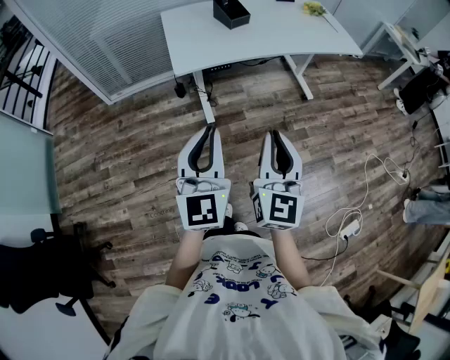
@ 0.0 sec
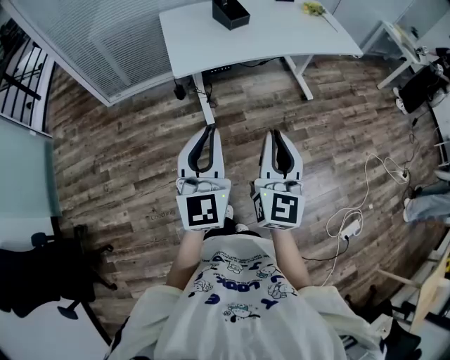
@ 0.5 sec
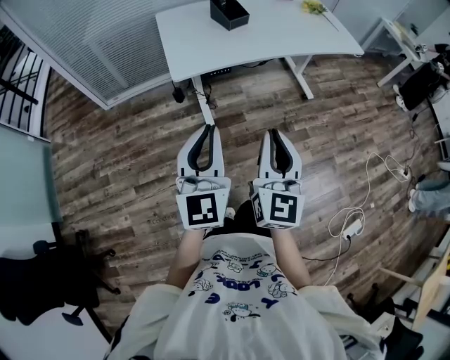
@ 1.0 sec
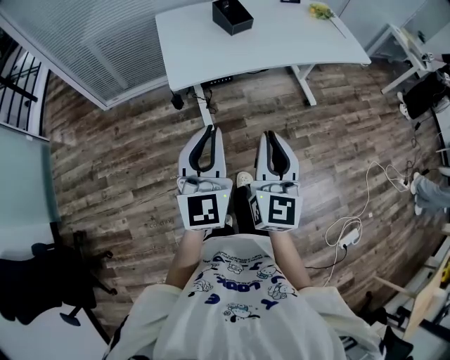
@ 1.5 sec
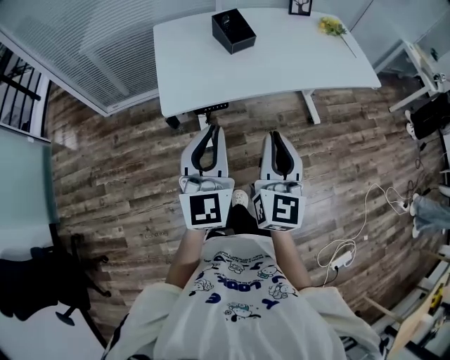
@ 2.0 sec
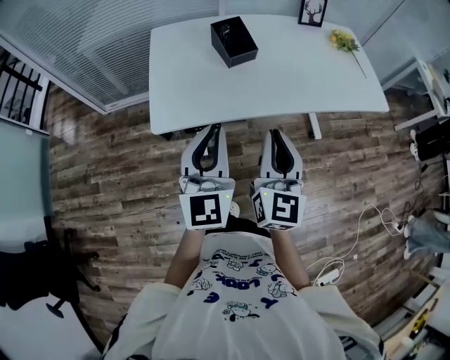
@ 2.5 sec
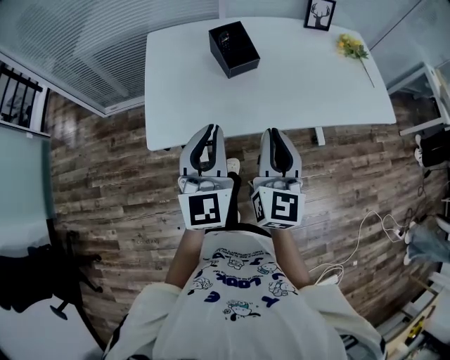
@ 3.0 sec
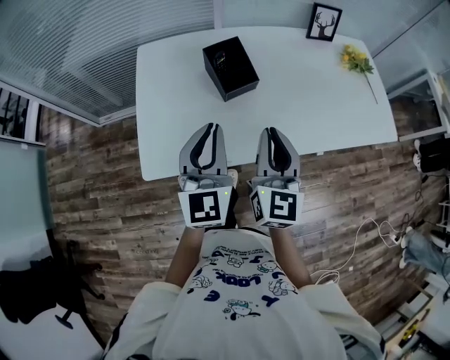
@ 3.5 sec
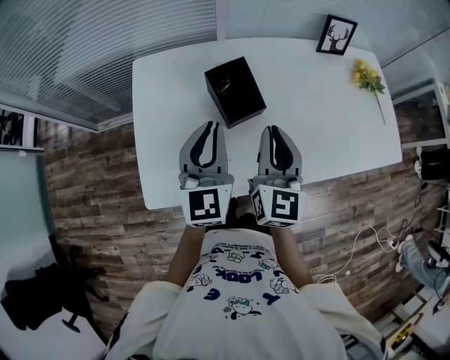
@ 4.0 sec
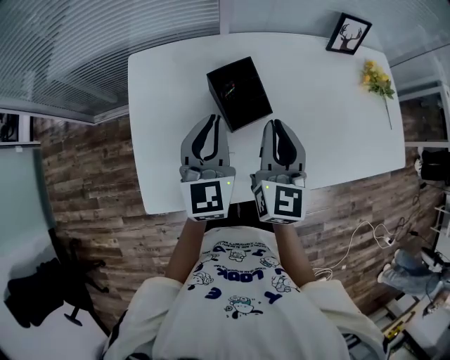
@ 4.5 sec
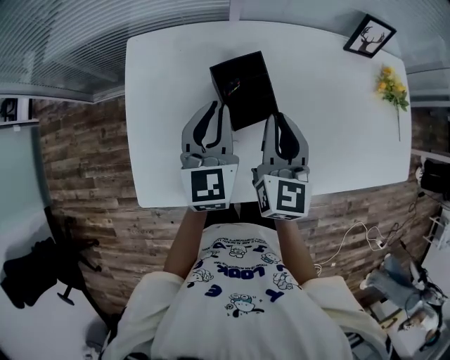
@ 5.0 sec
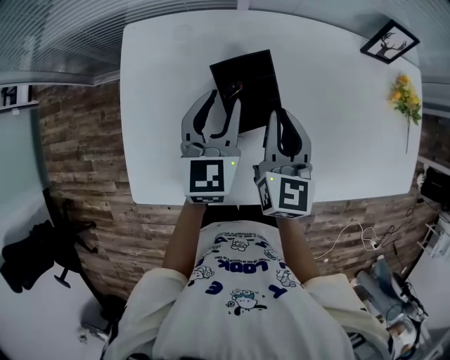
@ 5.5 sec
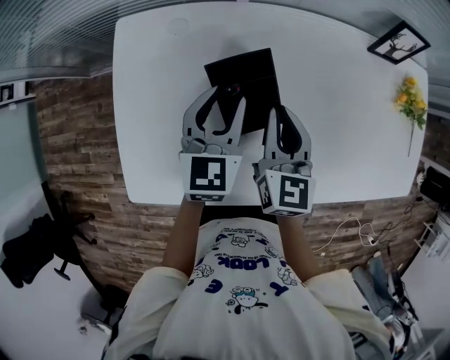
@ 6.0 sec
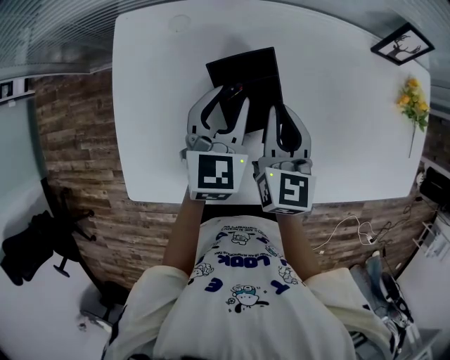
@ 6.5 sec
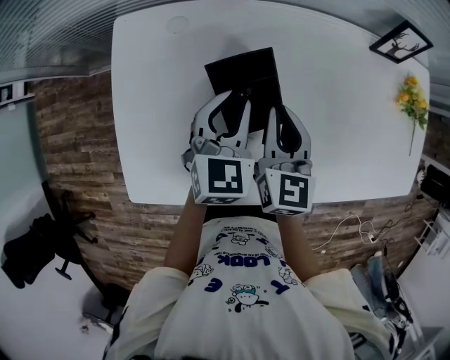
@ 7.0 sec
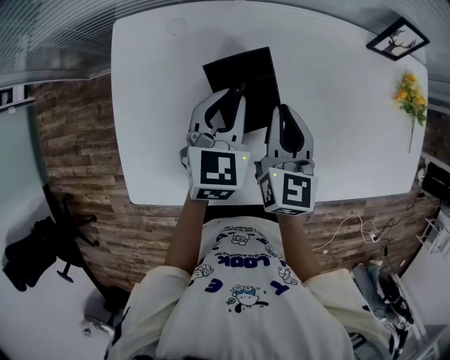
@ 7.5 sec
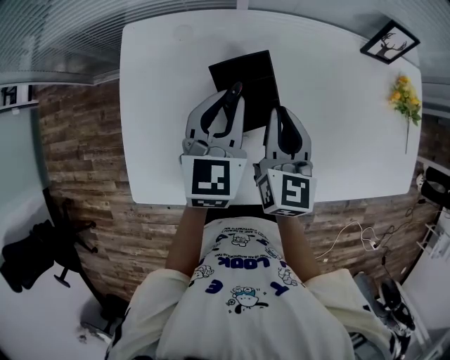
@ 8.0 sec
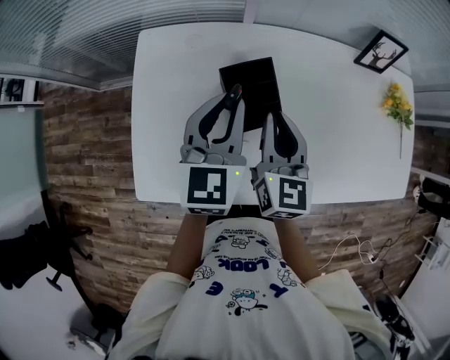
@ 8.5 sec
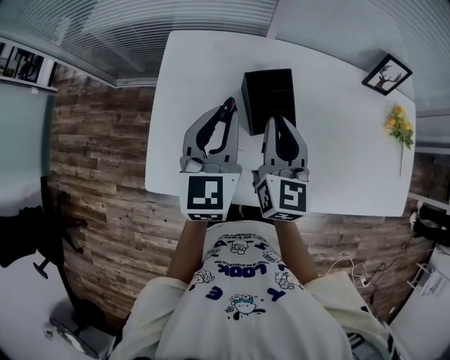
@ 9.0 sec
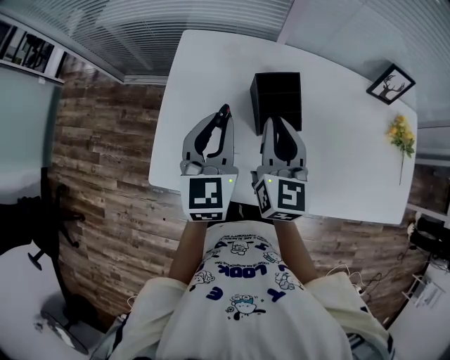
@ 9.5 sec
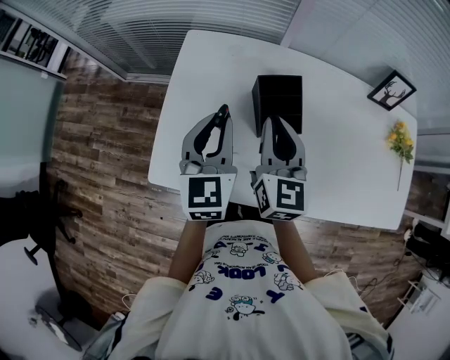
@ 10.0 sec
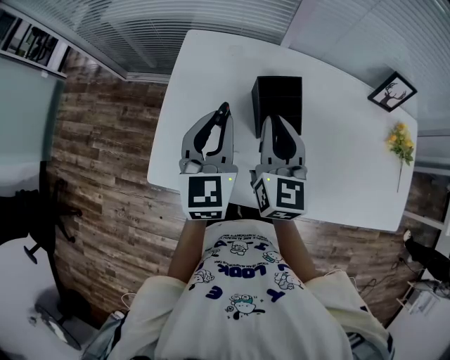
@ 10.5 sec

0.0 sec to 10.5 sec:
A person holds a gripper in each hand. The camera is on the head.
0.0 sec to 2.0 sec: Both grippers travel together forward, some 25 cm.
2.0 sec to 4.0 sec: Both grippers are carried forward, approximately 40 cm.
4.0 sec to 6.5 sec: The two grippers go roughly 20 cm forward and downward. The right gripper swivels roughly 20 degrees. The left gripper changes its angle by some 20 degrees, and opens its fingers.
6.5 sec to 8.5 sec: The right gripper goes about 5 cm upward. Meanwhile the left gripper is displaced upward by about 10 cm, and closes up.
8.5 sec to 10.5 sec: The left gripper travels to the left and backward by about 10 cm. The right gripper goes some 10 cm to the left.

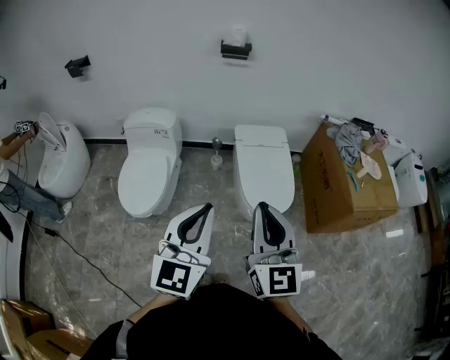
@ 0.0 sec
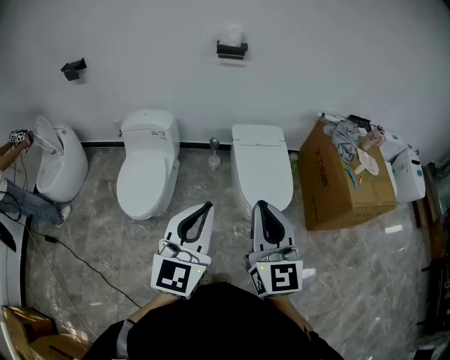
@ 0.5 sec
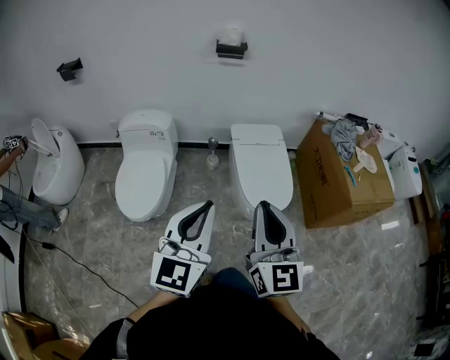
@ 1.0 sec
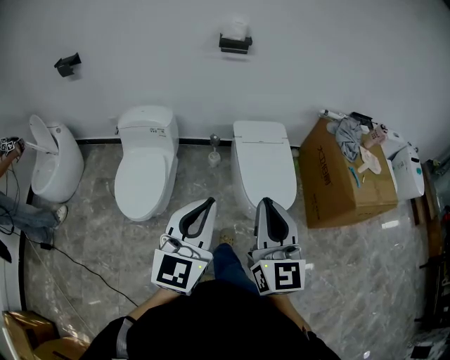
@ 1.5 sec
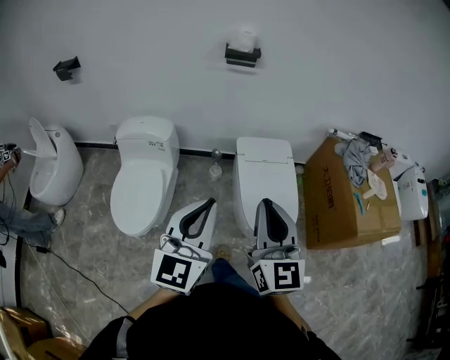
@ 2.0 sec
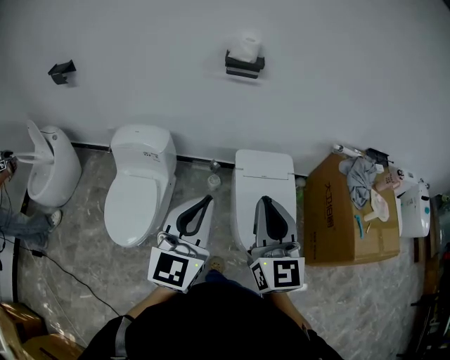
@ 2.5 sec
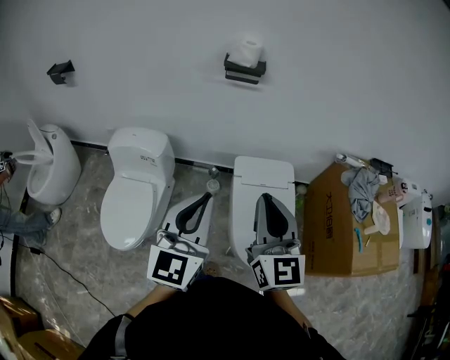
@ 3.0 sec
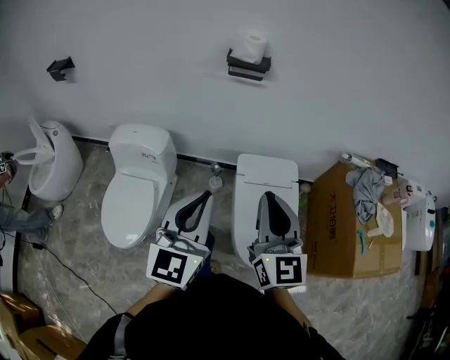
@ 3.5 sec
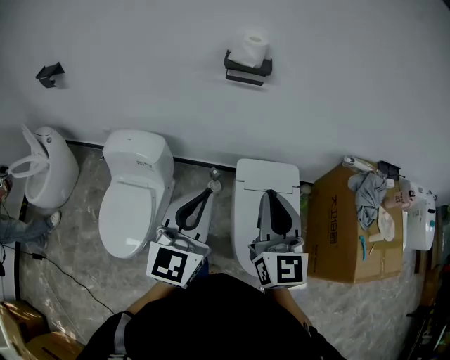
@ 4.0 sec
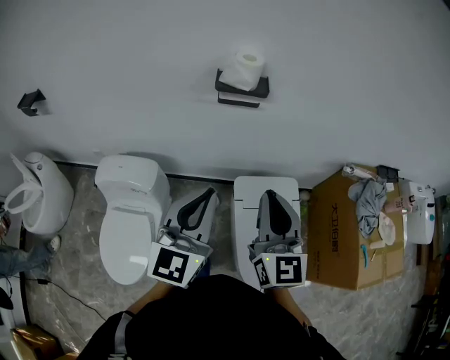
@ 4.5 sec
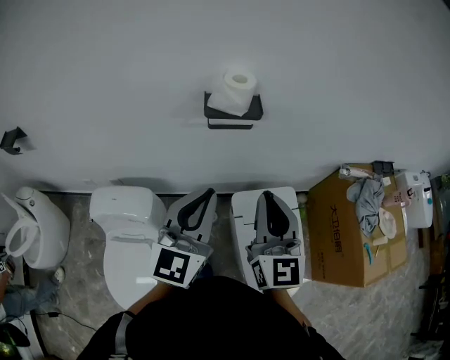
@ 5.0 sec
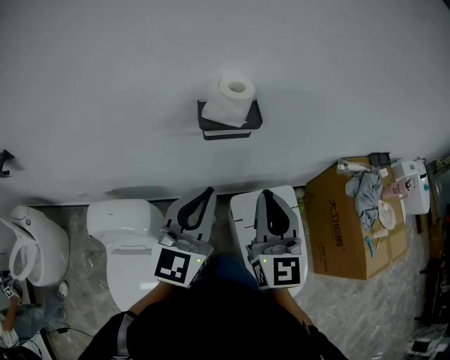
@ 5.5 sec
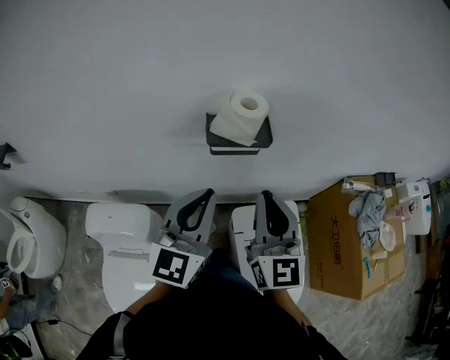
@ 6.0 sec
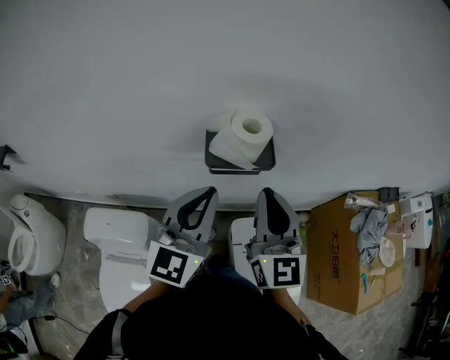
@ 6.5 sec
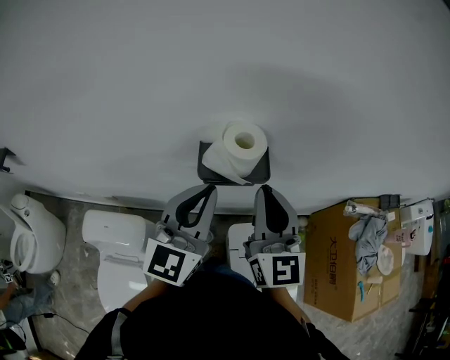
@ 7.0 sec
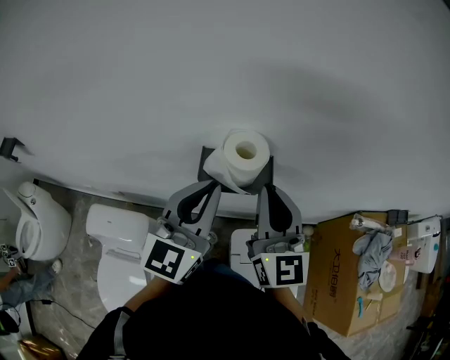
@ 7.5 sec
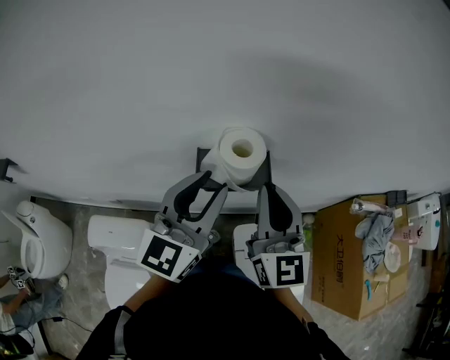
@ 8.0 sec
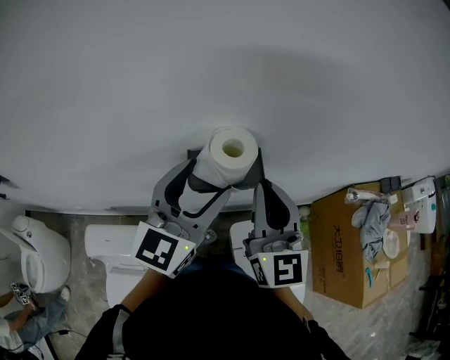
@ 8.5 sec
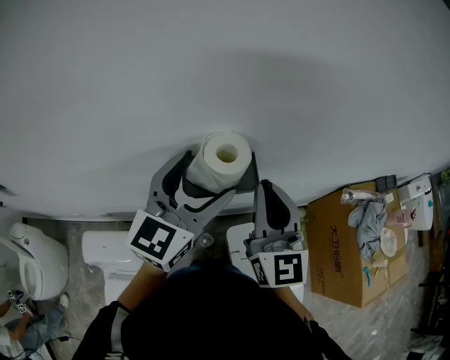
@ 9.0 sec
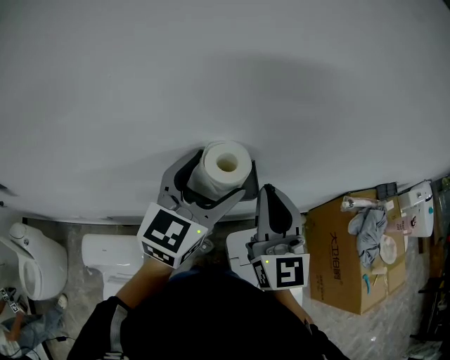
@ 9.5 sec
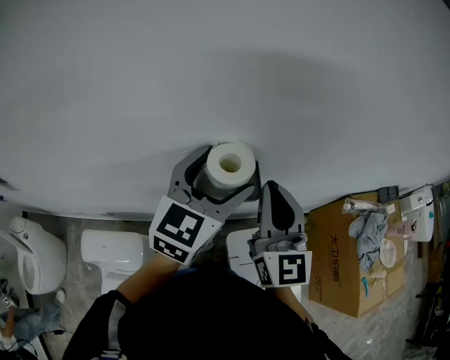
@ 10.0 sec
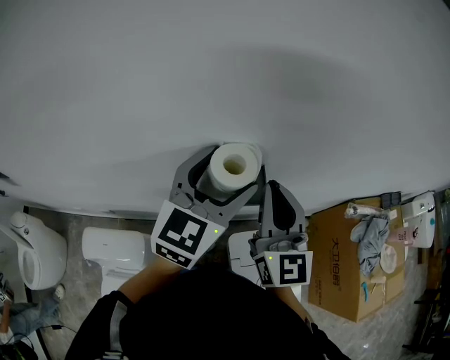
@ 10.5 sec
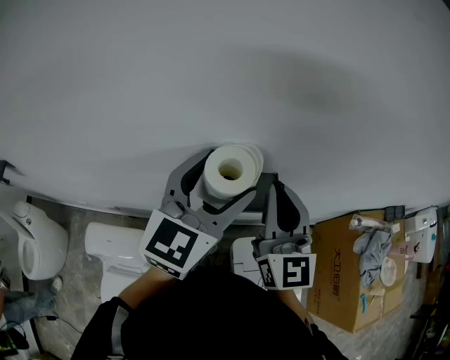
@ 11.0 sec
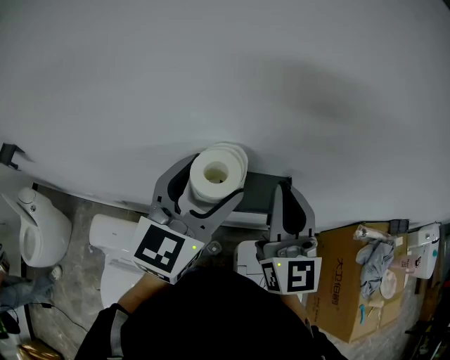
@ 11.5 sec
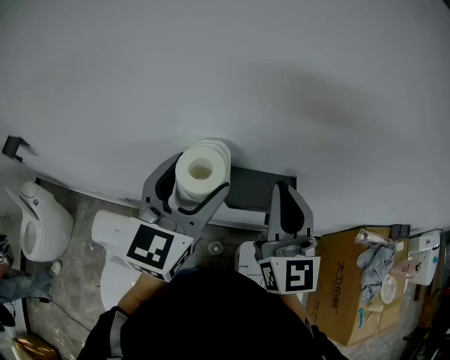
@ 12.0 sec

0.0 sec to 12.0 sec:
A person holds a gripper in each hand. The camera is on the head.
0.0 sec to 2.0 sec: The two grippers go some 15 cm forward.
2.0 sec to 4.0 sec: Both grippers travel together forward, roughly 30 cm.
4.0 sec to 6.0 sec: Both grippers move forward, about 30 cm.
6.0 sec to 8.0 sec: The two grippers go about 15 cm forward.
8.0 sec to 10.0 sec: The left gripper heads forward, covering roughly 5 cm, and opens its fingers.
10.0 sec to 12.0 sec: The right gripper moves to the left, roughly 5 cm; the left gripper is displaced to the left by about 15 cm, and turns by roughly 20 degrees.

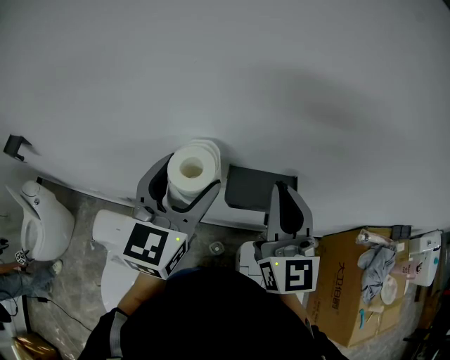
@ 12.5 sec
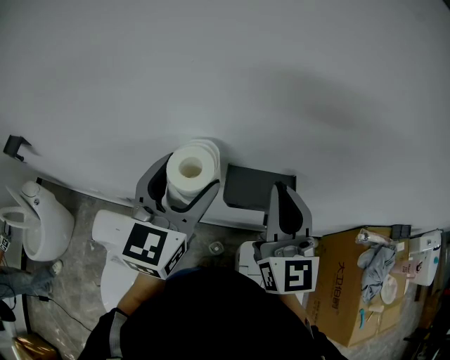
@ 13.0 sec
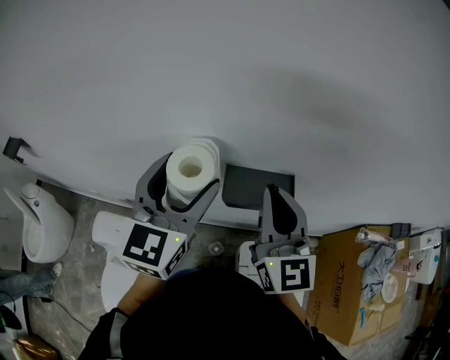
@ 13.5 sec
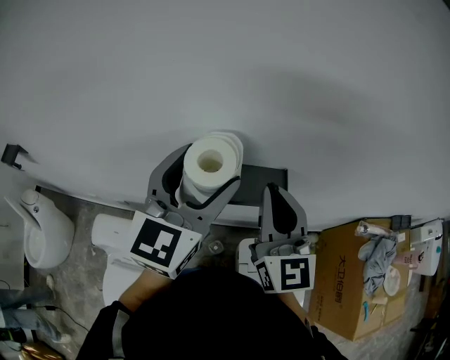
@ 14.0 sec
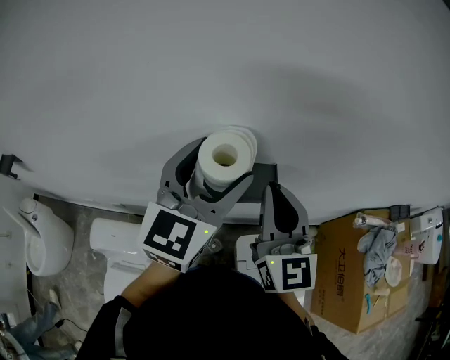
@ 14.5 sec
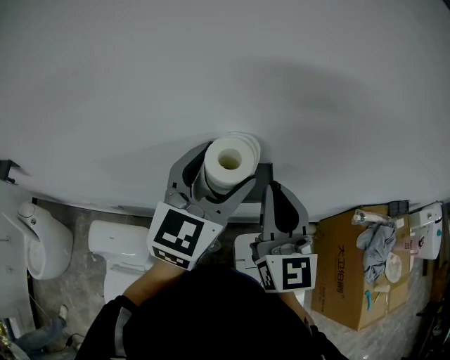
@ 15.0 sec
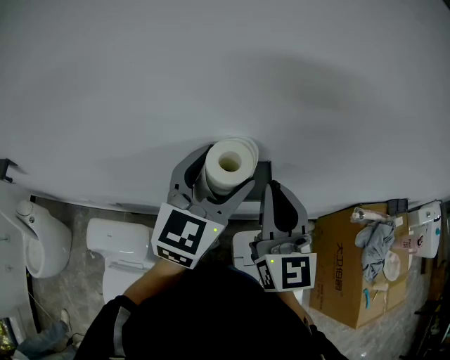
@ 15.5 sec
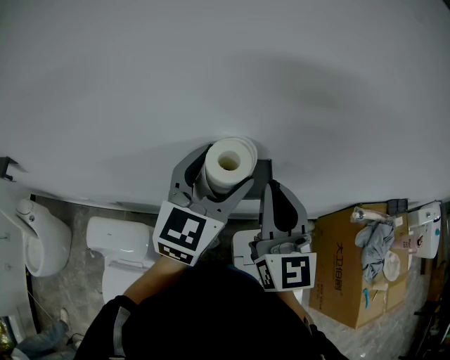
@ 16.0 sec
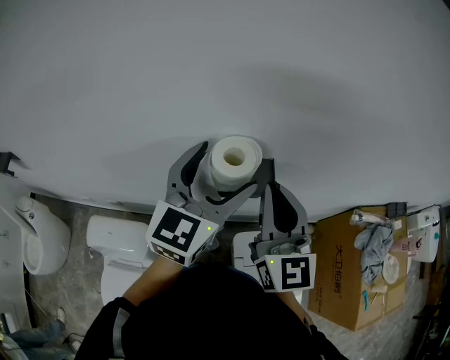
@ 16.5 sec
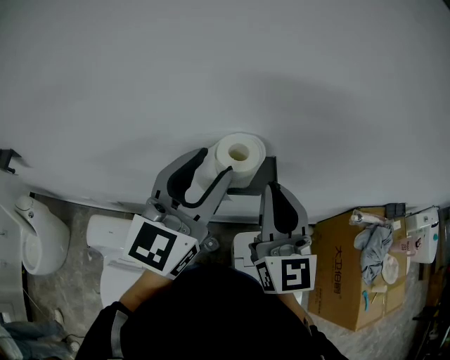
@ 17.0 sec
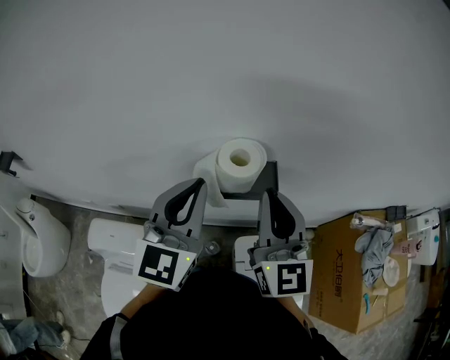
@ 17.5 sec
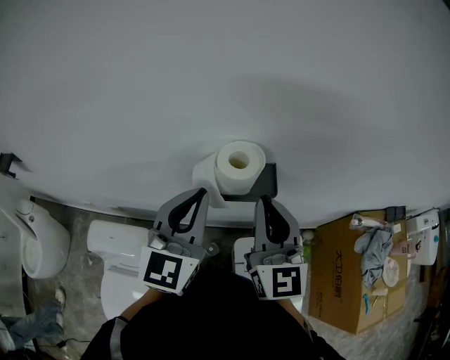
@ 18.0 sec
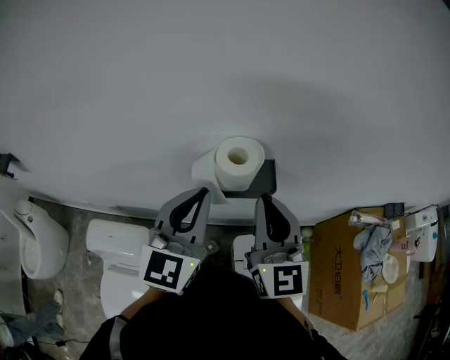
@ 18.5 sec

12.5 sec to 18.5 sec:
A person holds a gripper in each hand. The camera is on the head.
12.5 sec to 14.5 sec: The left gripper travels to the right by roughly 10 cm.
14.5 sec to 16.5 sec: There are only small adjustments of the grippers.
16.5 sec to 18.5 sec: The left gripper moves backward and to the left, roughly 10 cm, and closes.
